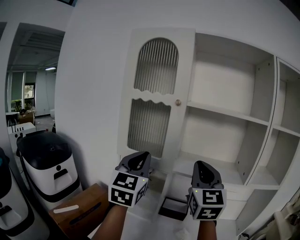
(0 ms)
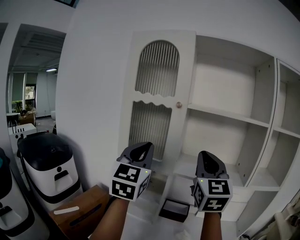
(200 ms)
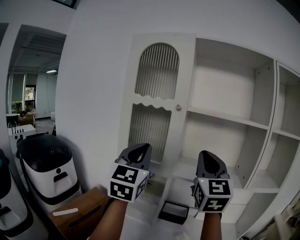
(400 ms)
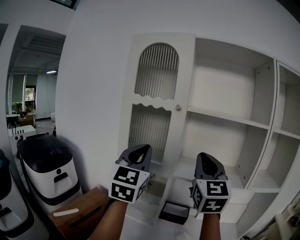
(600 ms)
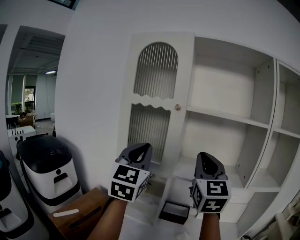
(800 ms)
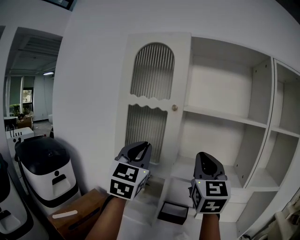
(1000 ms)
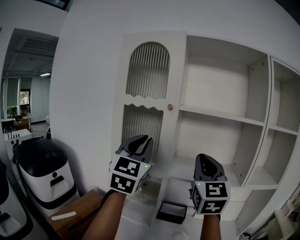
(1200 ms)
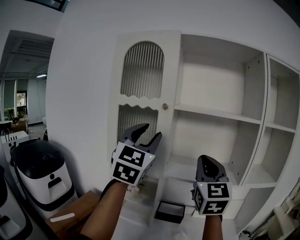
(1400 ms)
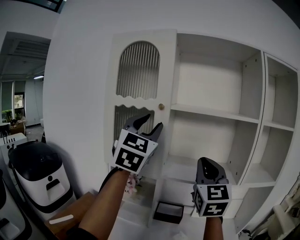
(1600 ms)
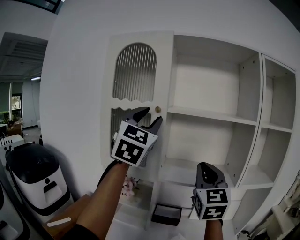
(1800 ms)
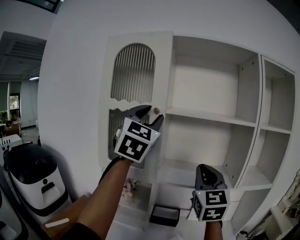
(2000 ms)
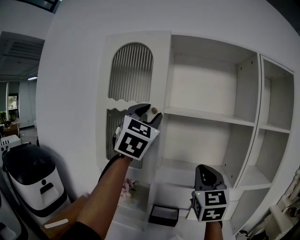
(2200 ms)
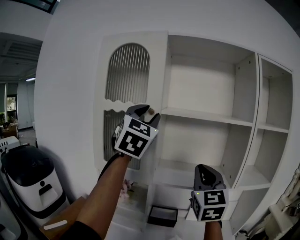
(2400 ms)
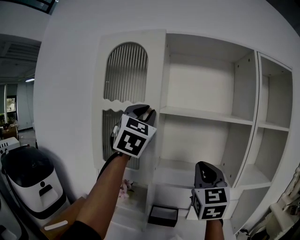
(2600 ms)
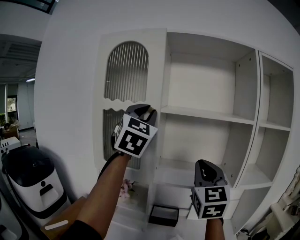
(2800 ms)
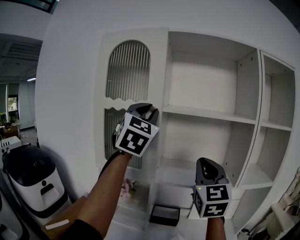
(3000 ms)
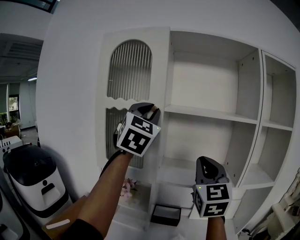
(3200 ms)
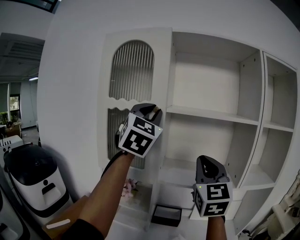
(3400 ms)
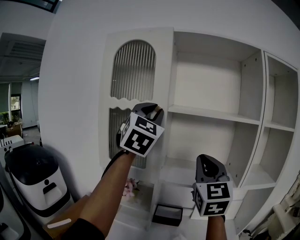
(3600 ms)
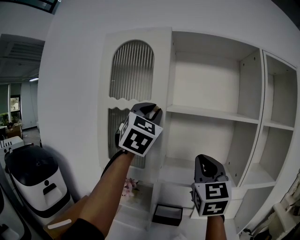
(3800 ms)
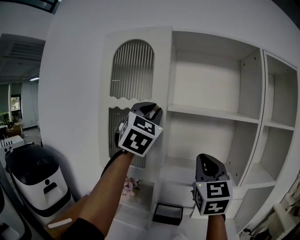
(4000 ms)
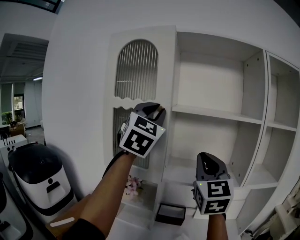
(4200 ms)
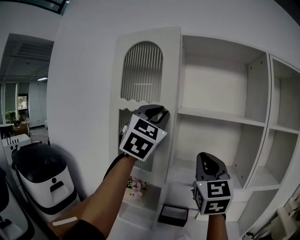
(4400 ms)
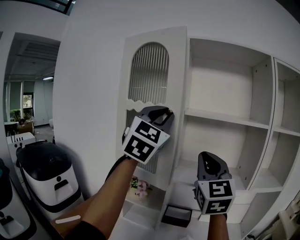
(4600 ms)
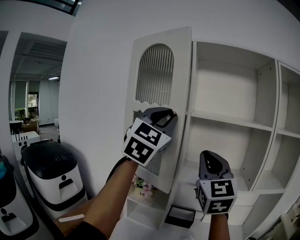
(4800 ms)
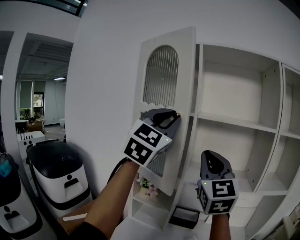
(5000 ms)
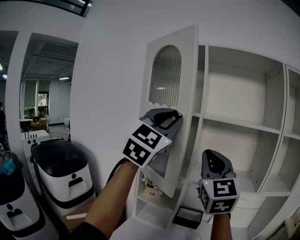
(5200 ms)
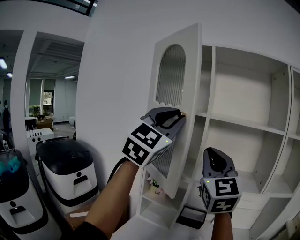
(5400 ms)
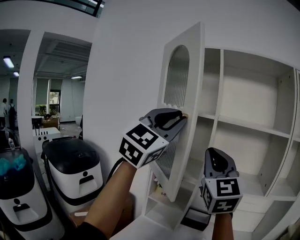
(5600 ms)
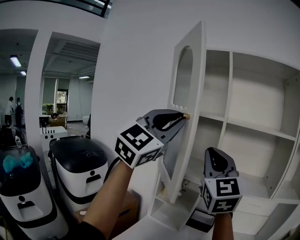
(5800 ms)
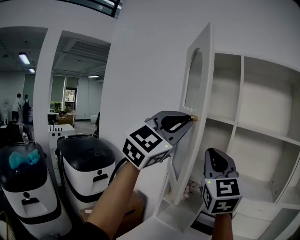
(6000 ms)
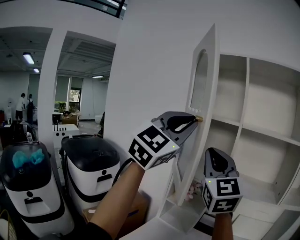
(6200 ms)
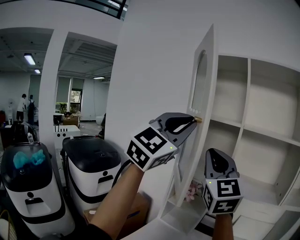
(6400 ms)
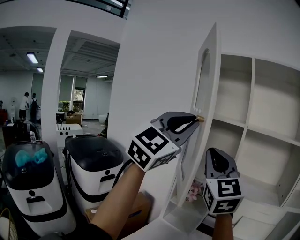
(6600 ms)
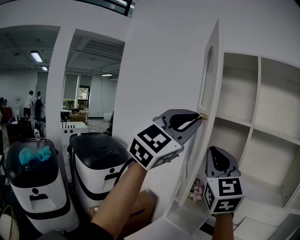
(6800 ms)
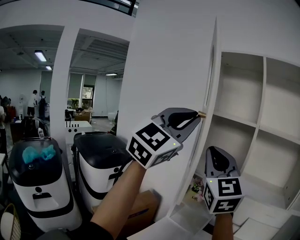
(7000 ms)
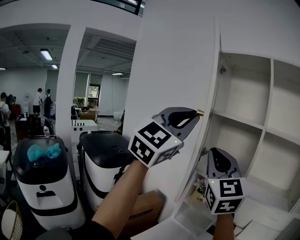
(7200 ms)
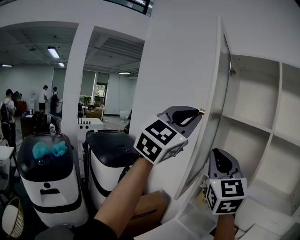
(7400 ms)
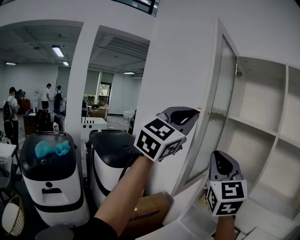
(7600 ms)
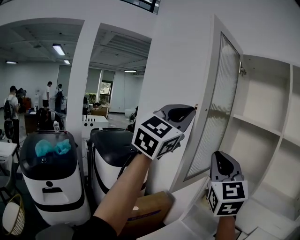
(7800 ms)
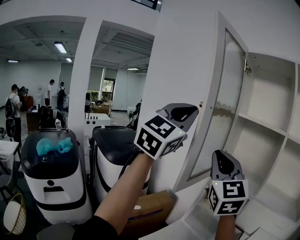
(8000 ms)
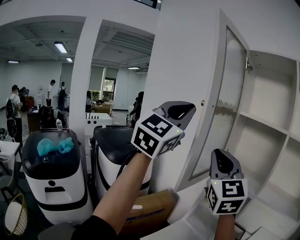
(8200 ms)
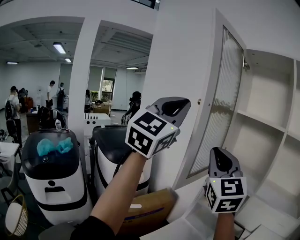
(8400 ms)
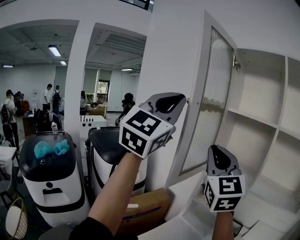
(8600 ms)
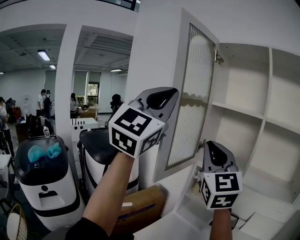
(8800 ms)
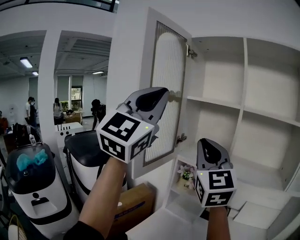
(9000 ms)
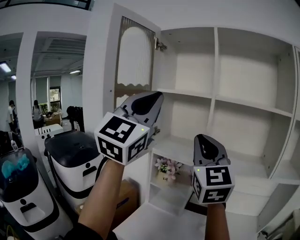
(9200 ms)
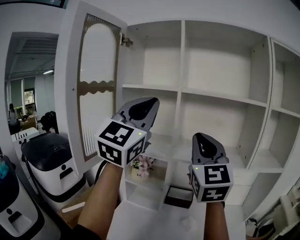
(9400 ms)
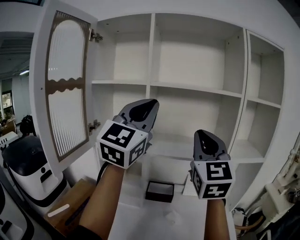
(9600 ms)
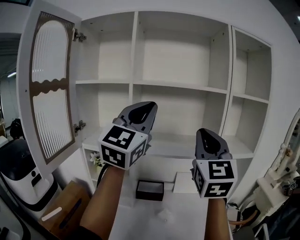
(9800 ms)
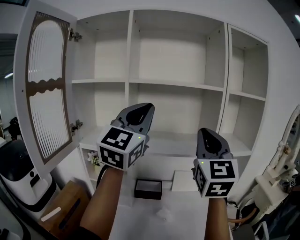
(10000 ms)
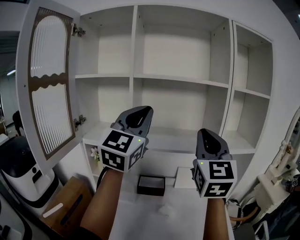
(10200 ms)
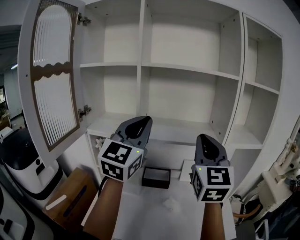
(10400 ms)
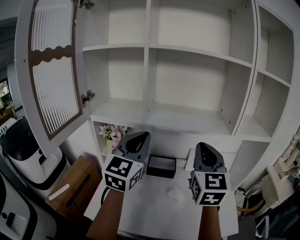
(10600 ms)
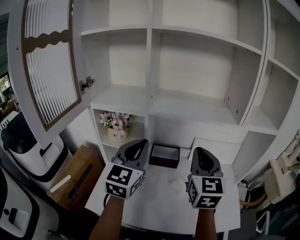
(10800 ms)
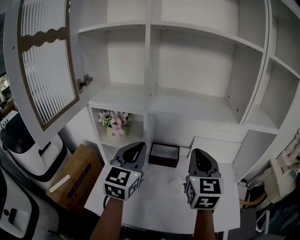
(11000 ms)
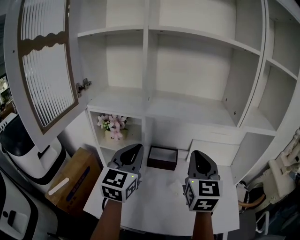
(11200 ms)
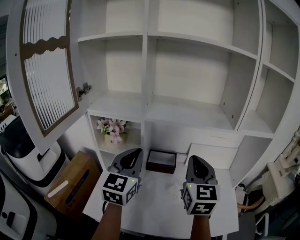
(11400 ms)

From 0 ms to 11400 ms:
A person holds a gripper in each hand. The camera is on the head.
From 0 ms to 1400 ms: The right gripper ends up approximately 5 cm from where it was. The left gripper shifts some 10 cm upward, and opens.
From 1400 ms to 2800 ms: The left gripper moves upward and forward, some 10 cm, and closes its fingers.
From 2800 ms to 4200 ms: The grippers stay close to where they were, moving slightly.
From 4200 ms to 5600 ms: The right gripper travels to the left and backward by some 15 cm; the left gripper is displaced backward and to the left by roughly 15 cm.
From 5600 ms to 7200 ms: The grippers both shift to the left by approximately 15 cm.
From 7200 ms to 8600 ms: The left gripper shifts some 10 cm to the left. The right gripper moves to the left, about 5 cm.
From 8600 ms to 10000 ms: The two grippers travel together, some 50 cm. The right gripper swivels approximately 50 degrees, while the left gripper rotates some 40 degrees.
From 10000 ms to 11400 ms: The two grippers go some 25 cm downward. The right gripper changes its angle by roughly 20 degrees. The left gripper swivels about 30 degrees.

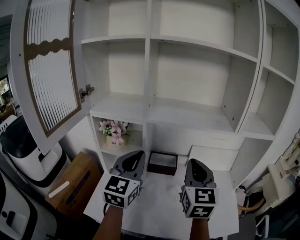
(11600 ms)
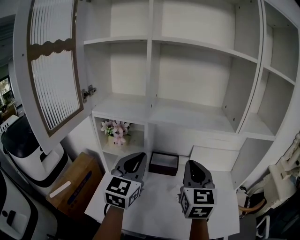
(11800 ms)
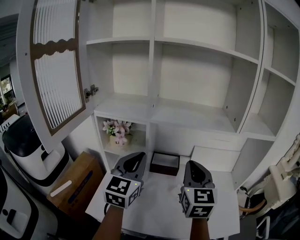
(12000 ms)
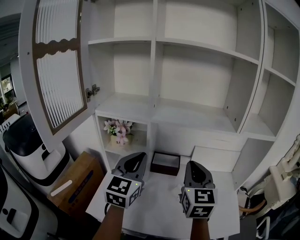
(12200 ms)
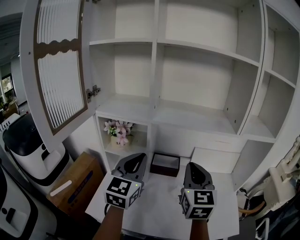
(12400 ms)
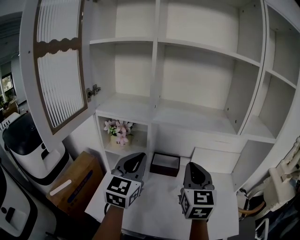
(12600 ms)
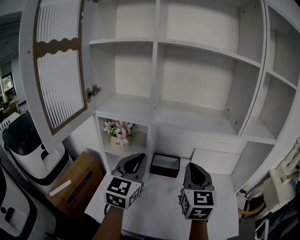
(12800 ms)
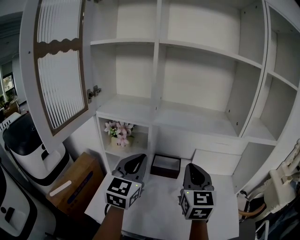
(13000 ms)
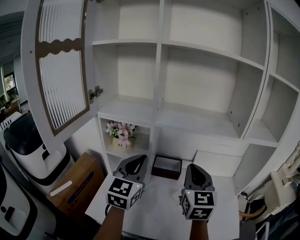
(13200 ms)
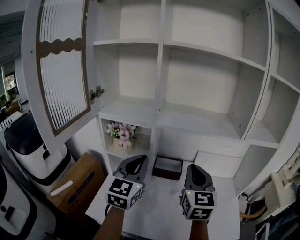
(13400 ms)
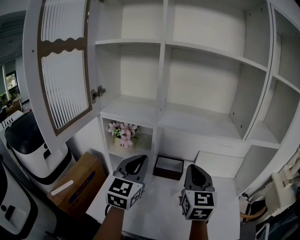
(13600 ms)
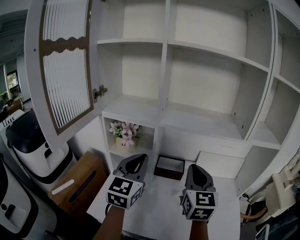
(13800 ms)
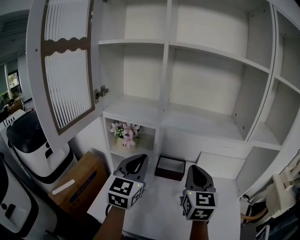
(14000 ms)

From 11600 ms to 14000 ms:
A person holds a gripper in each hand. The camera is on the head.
From 11600 ms to 14000 ms: There are only small adjustments of the grippers.

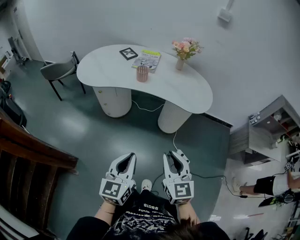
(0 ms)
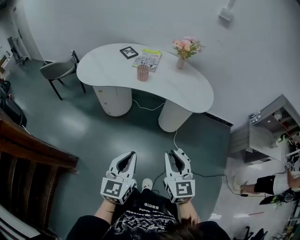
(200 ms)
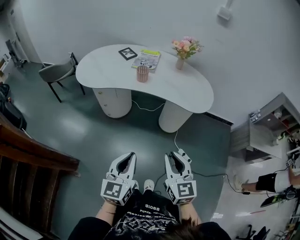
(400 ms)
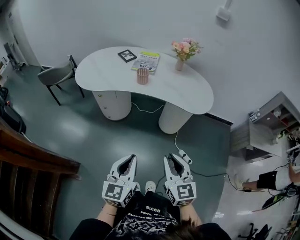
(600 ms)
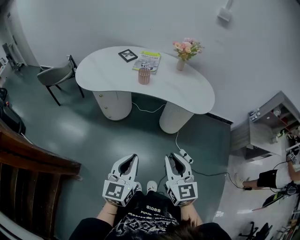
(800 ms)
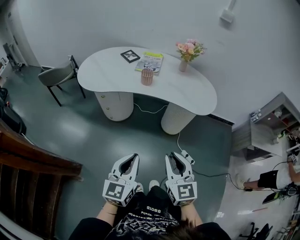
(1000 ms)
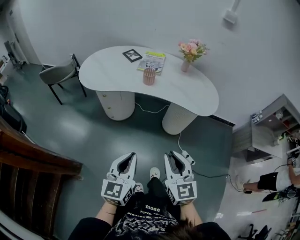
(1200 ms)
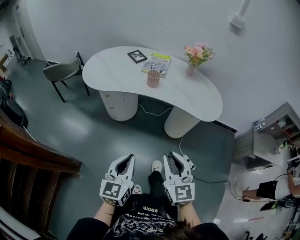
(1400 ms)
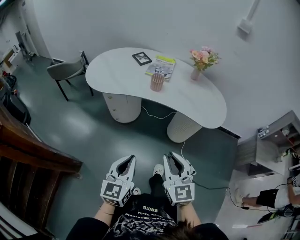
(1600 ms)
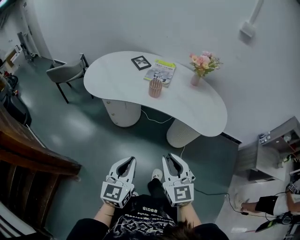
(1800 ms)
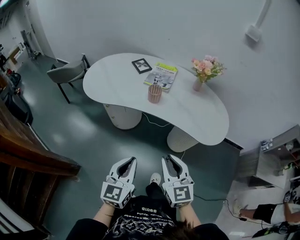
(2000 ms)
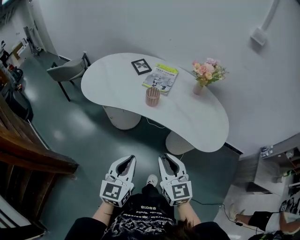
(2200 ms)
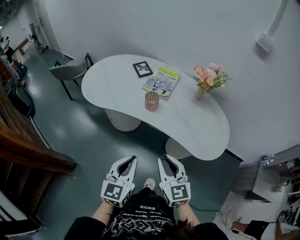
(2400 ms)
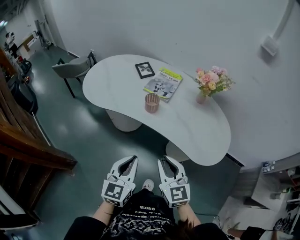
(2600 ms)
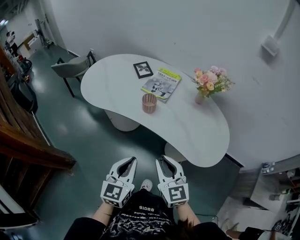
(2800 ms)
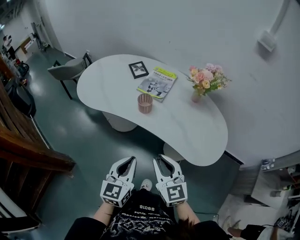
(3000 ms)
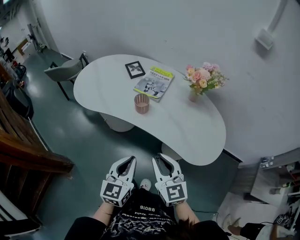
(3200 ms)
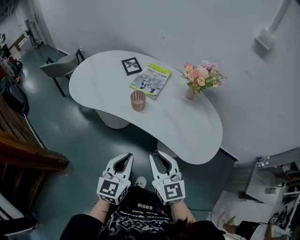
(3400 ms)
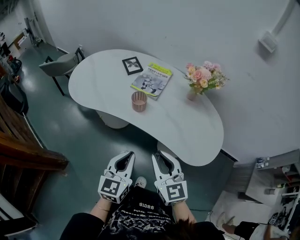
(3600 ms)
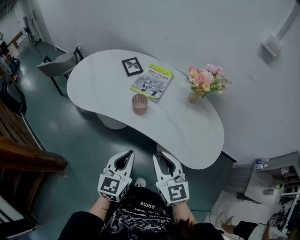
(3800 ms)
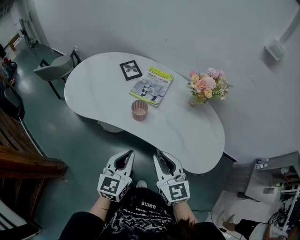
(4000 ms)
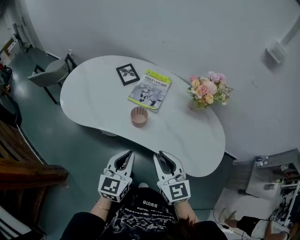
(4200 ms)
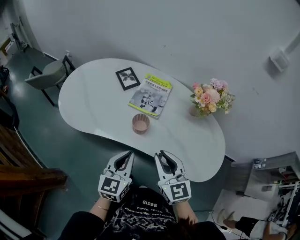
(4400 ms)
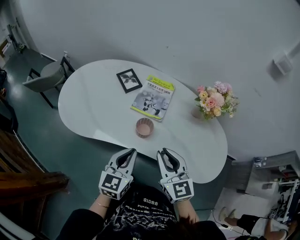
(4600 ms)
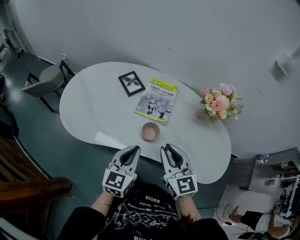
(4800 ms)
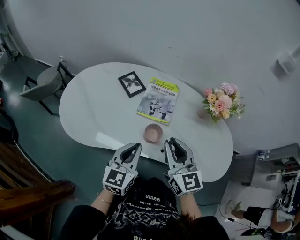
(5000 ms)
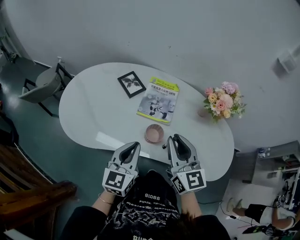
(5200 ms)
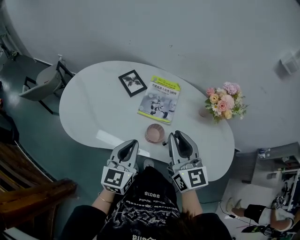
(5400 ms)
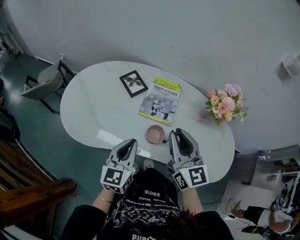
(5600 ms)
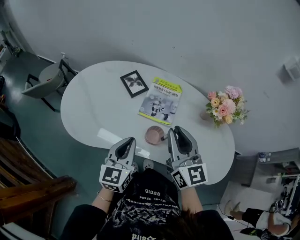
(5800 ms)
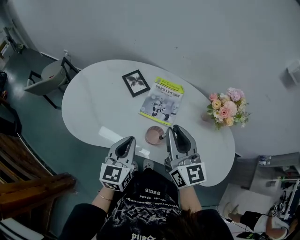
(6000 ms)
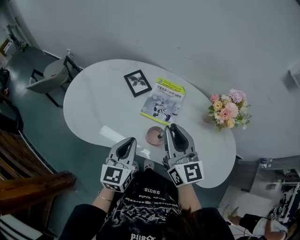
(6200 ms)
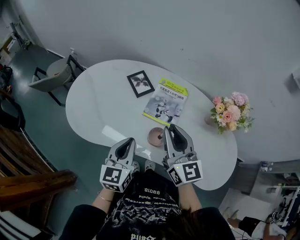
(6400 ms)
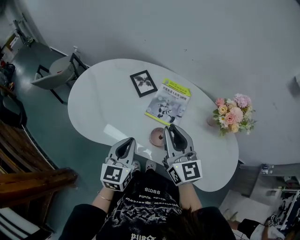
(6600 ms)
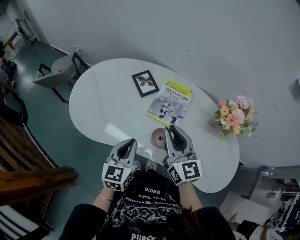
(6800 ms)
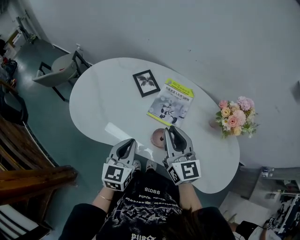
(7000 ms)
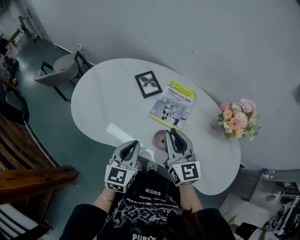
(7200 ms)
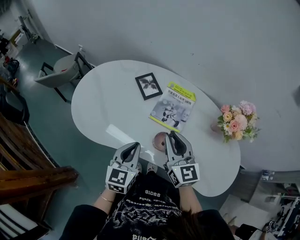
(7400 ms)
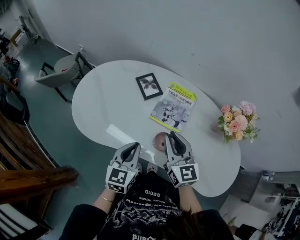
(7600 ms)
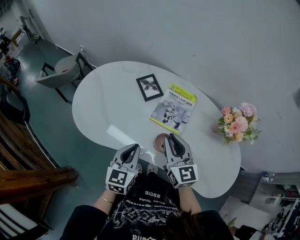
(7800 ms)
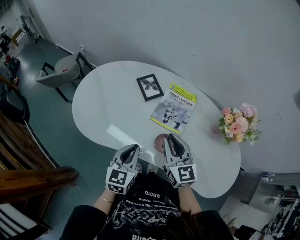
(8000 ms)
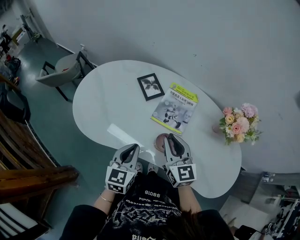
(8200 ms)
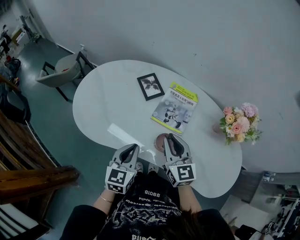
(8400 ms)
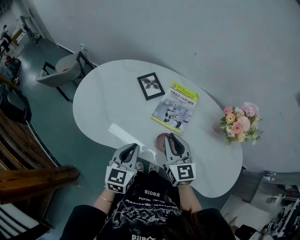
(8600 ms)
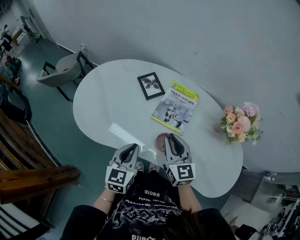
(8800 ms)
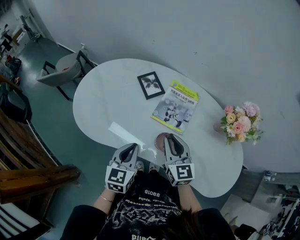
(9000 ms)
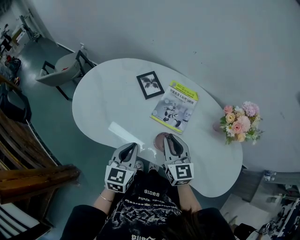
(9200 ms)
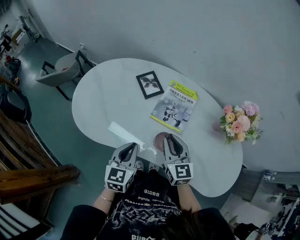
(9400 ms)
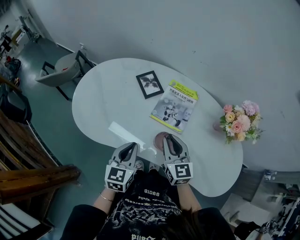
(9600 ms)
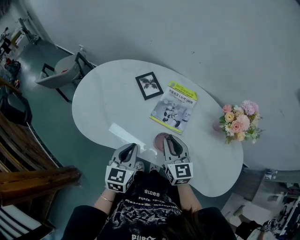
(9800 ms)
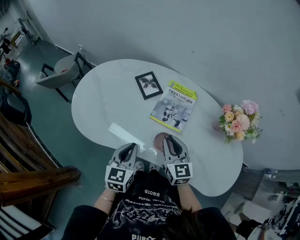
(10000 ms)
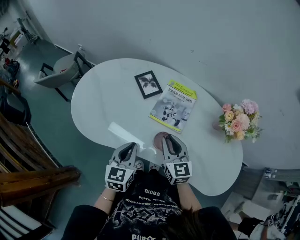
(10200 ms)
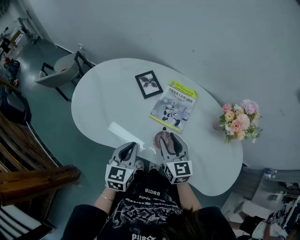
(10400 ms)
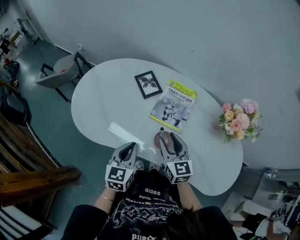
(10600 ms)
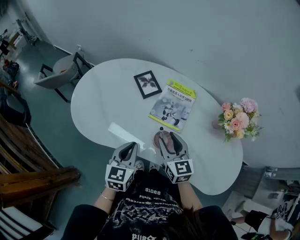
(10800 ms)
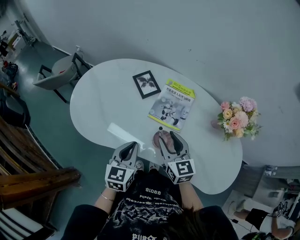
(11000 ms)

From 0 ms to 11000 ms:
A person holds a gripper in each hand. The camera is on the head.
From 0 ms to 1600 ms: Both grippers move forward and to the left, approximately 10 cm.
From 1600 ms to 3200 ms: The grippers both shift forward and to the right by some 25 cm.
From 3200 ms to 4800 ms: Both grippers travel together forward, about 25 cm.
From 4800 ms to 6200 ms: The right gripper heads forward, covering about 10 cm. The left gripper heads forward, covering about 5 cm.
From 6200 ms to 7800 ms: The right gripper shifts about 10 cm downward.
From 7800 ms to 9400 ms: The grippers make only small movements.
From 9400 ms to 11000 ms: The right gripper opens its fingers.
